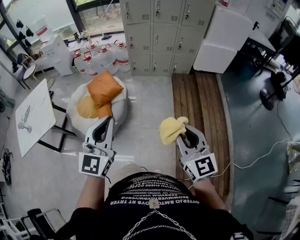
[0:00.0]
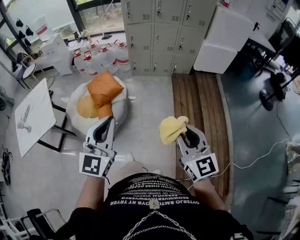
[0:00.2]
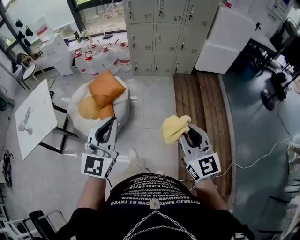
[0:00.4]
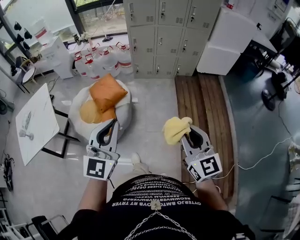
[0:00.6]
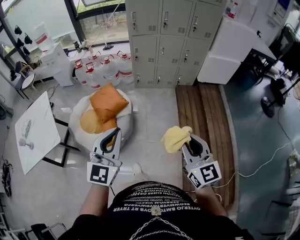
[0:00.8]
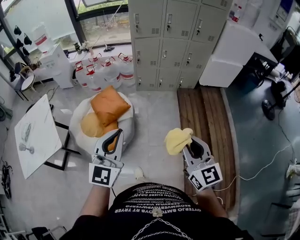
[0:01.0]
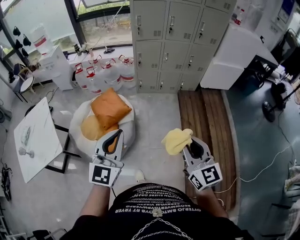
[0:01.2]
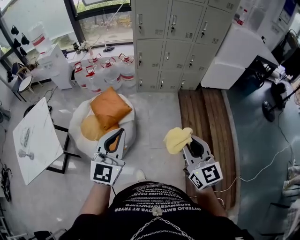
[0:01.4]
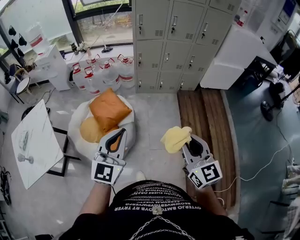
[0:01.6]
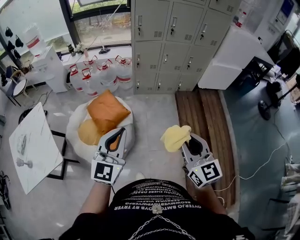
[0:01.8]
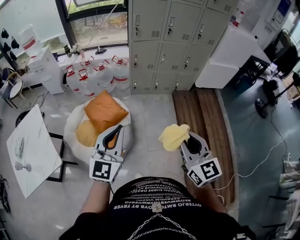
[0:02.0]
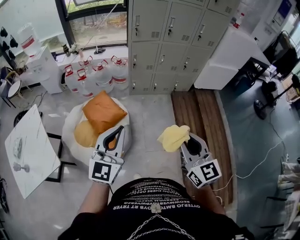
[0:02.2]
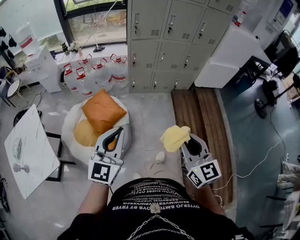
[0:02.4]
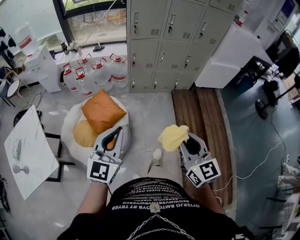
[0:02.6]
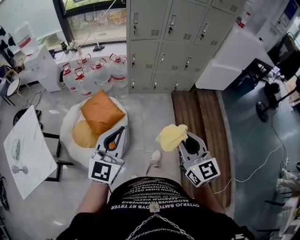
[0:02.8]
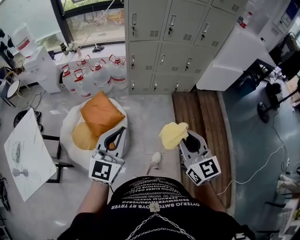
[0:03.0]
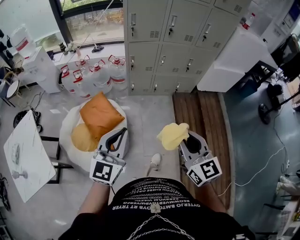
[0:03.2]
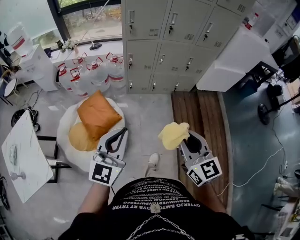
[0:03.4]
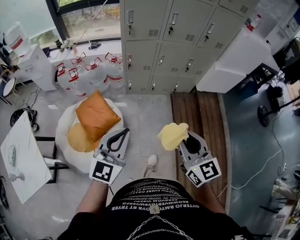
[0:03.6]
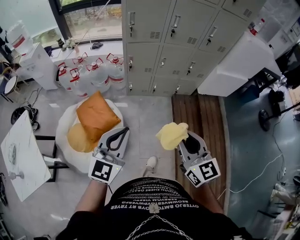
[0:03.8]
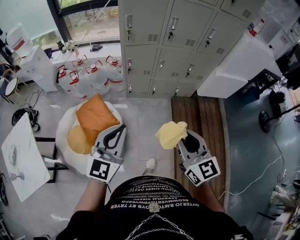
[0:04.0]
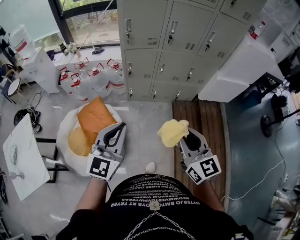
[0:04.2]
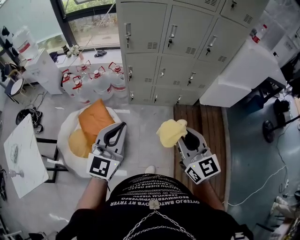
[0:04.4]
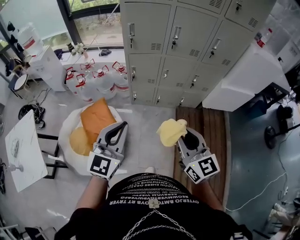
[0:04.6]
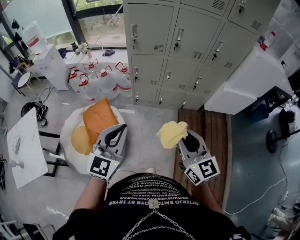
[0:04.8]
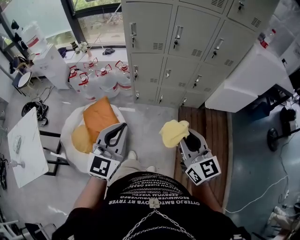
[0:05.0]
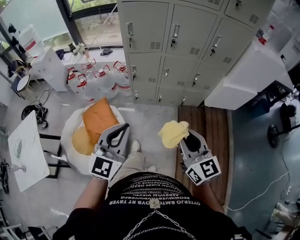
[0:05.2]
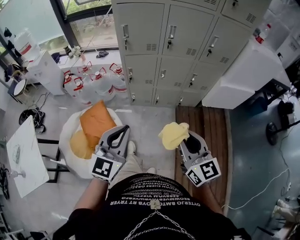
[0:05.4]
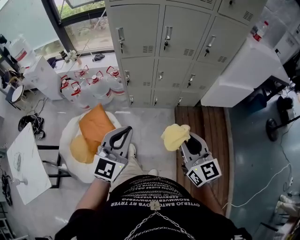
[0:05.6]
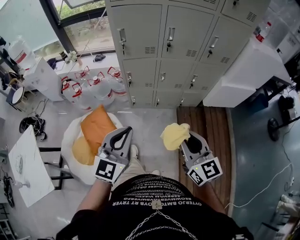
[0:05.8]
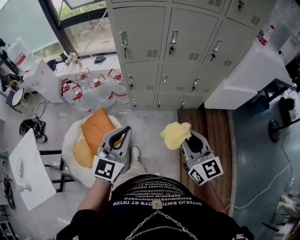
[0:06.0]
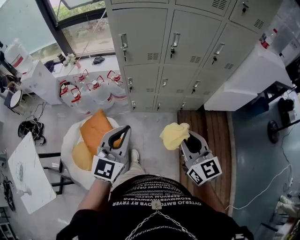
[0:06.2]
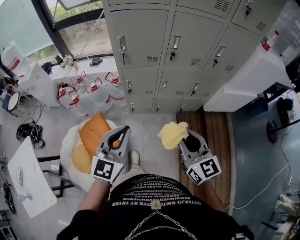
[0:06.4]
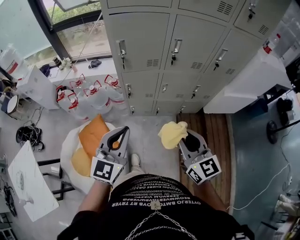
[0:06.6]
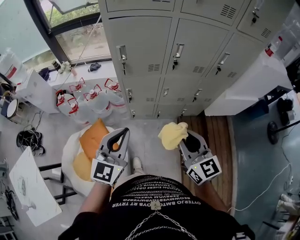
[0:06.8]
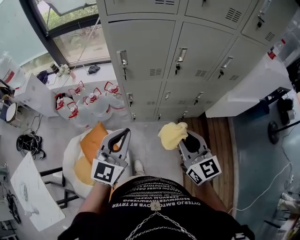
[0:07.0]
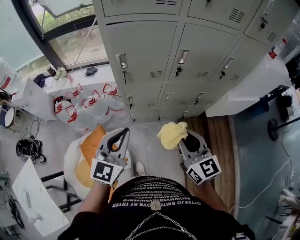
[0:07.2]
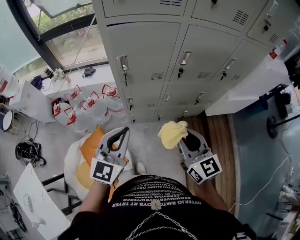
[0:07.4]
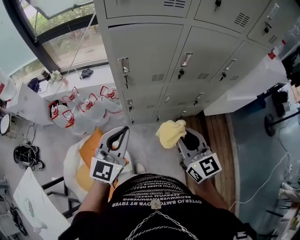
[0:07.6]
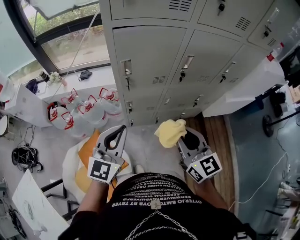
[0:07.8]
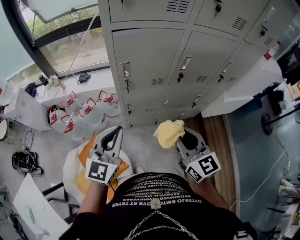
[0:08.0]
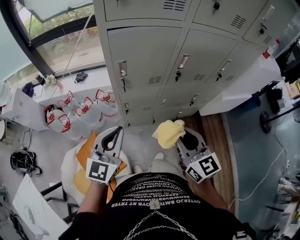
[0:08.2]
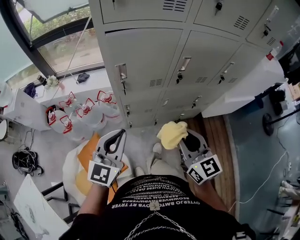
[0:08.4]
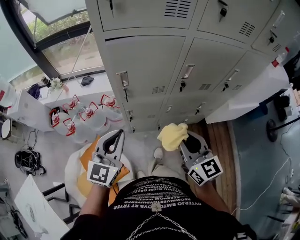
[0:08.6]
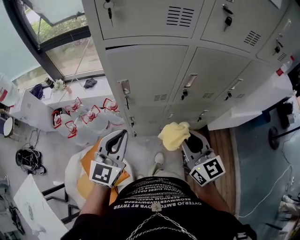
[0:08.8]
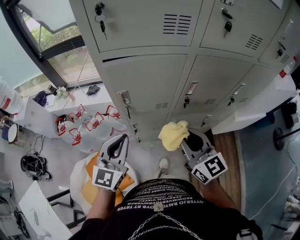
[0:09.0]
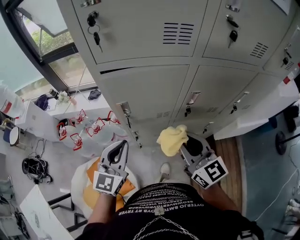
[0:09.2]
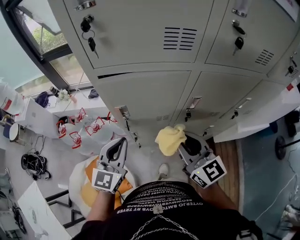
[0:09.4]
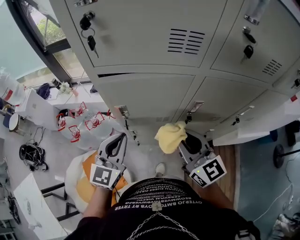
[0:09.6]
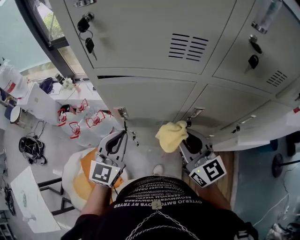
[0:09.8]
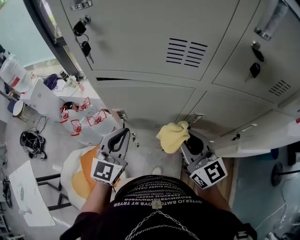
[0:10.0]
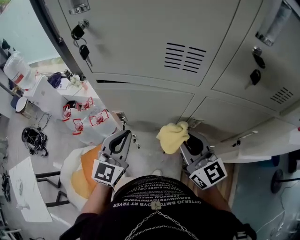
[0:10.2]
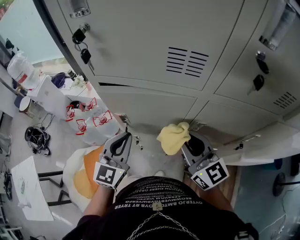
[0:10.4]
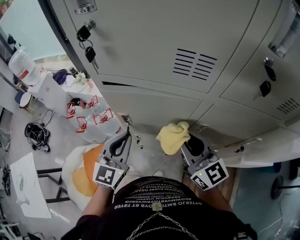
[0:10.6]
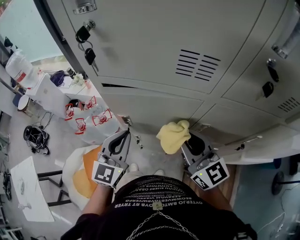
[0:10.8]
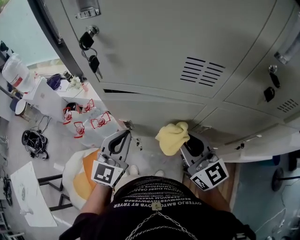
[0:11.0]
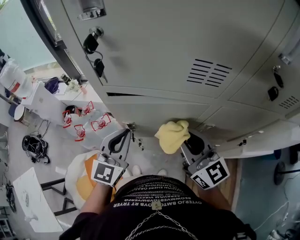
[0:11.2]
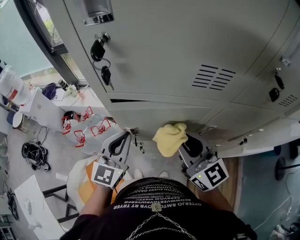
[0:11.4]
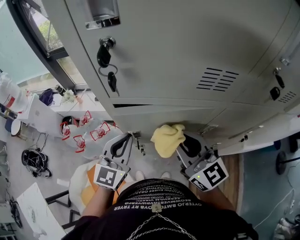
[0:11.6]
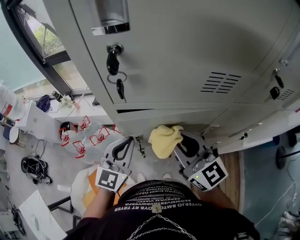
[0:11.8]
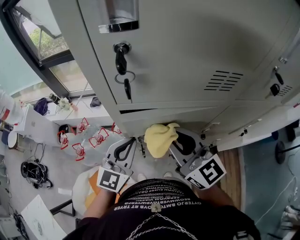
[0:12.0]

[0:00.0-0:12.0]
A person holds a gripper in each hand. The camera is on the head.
0:00.0 to 0:01.6: Both grippers travel together forward and to the left, some 25 cm.
0:01.6 to 0:03.0: The grippers both shift forward by approximately 15 cm.
0:03.0 to 0:04.4: The two grippers go roughly 20 cm forward and to the right.
0:04.4 to 0:06.0: Both grippers travel together forward, some 10 cm.
0:06.0 to 0:07.6: The right gripper goes about 25 cm forward and to the left, while the left gripper travels forward by some 25 cm.
0:07.6 to 0:09.0: The two grippers go roughly 10 cm forward.
0:09.0 to 0:10.4: The right gripper shifts roughly 15 cm forward. Meanwhile the left gripper shifts some 10 cm forward and to the right.
0:10.4 to 0:12.0: The left gripper moves forward and to the left, approximately 10 cm. The right gripper goes roughly 15 cm to the left.

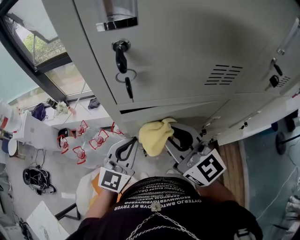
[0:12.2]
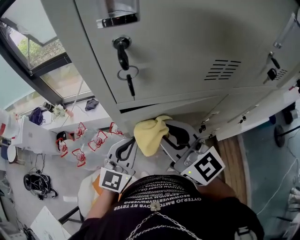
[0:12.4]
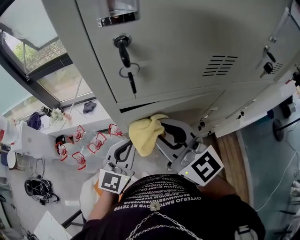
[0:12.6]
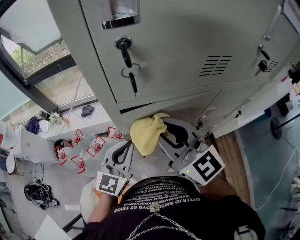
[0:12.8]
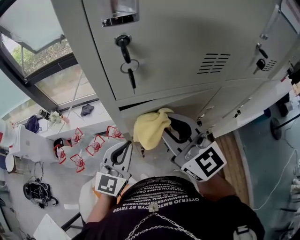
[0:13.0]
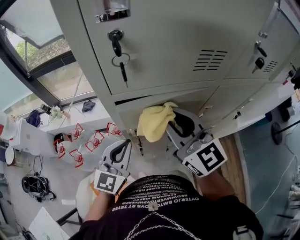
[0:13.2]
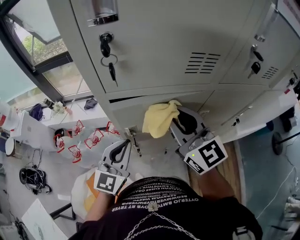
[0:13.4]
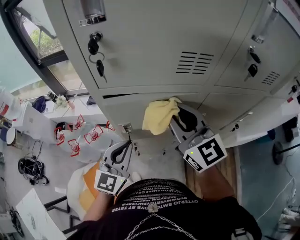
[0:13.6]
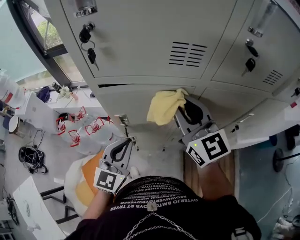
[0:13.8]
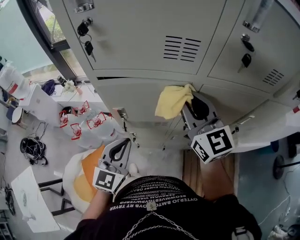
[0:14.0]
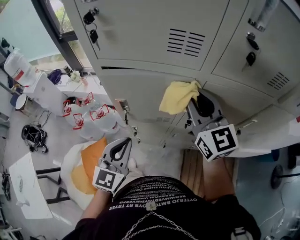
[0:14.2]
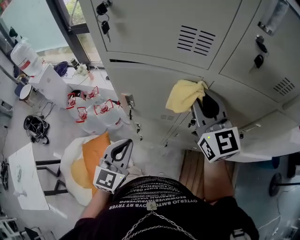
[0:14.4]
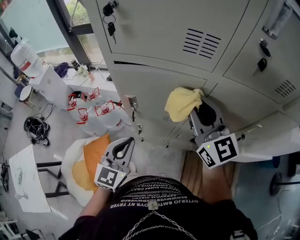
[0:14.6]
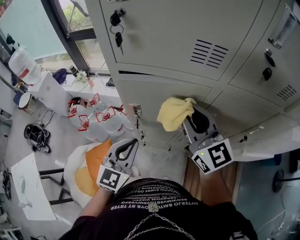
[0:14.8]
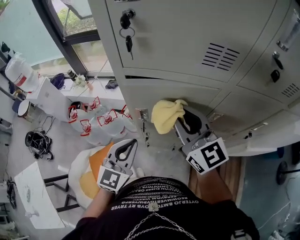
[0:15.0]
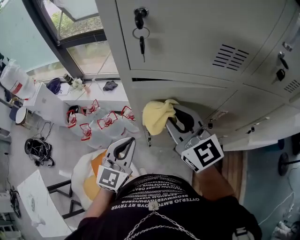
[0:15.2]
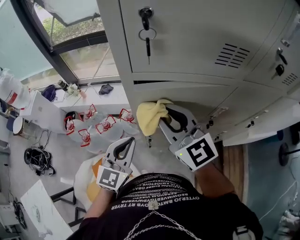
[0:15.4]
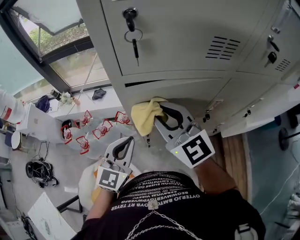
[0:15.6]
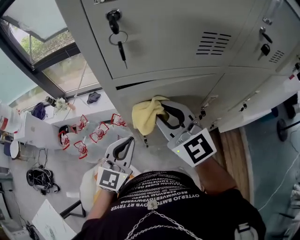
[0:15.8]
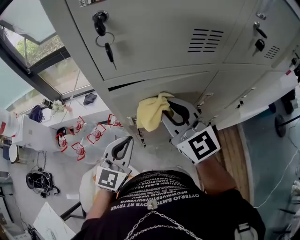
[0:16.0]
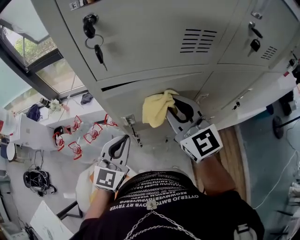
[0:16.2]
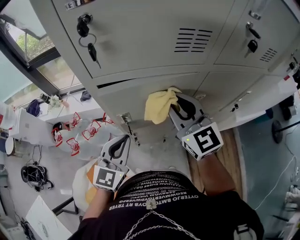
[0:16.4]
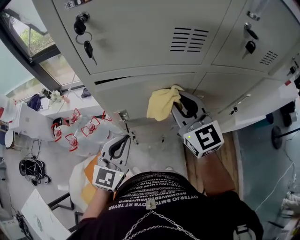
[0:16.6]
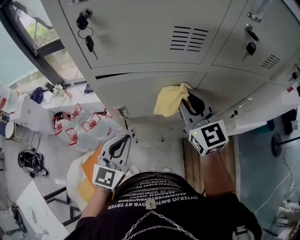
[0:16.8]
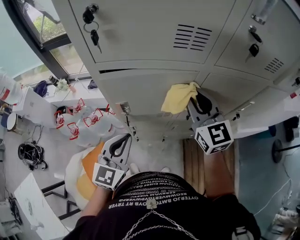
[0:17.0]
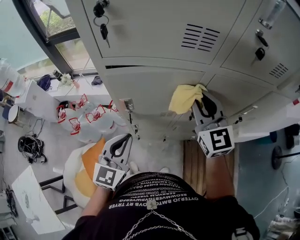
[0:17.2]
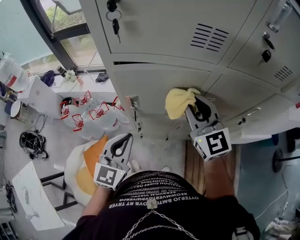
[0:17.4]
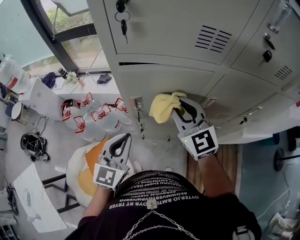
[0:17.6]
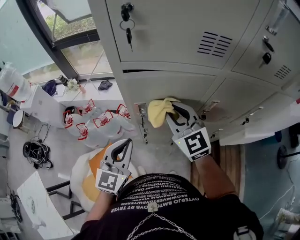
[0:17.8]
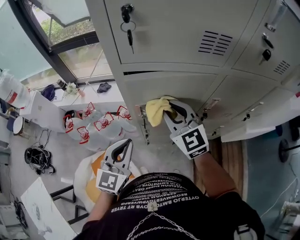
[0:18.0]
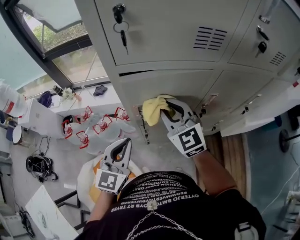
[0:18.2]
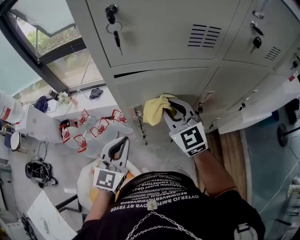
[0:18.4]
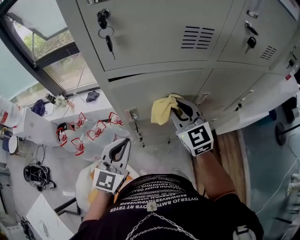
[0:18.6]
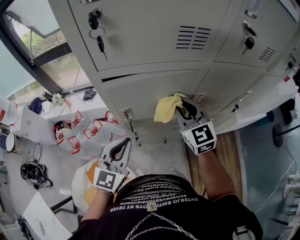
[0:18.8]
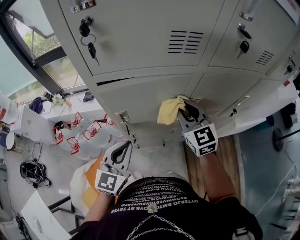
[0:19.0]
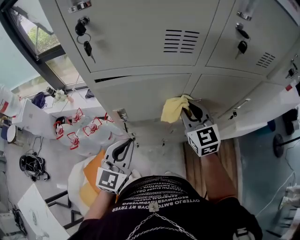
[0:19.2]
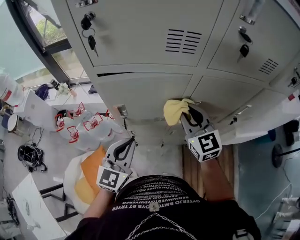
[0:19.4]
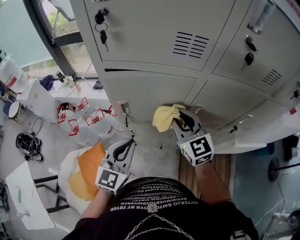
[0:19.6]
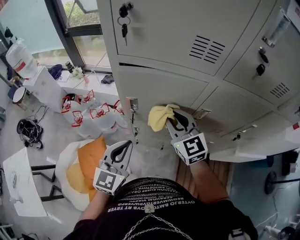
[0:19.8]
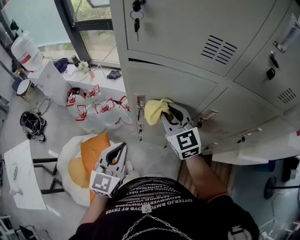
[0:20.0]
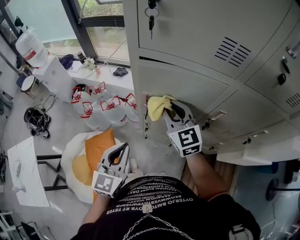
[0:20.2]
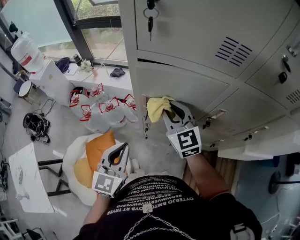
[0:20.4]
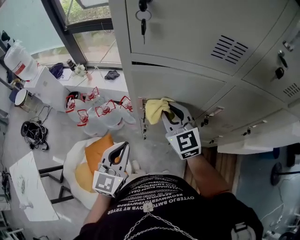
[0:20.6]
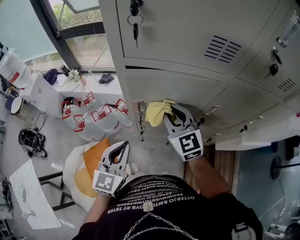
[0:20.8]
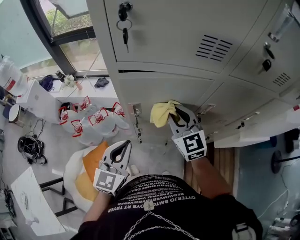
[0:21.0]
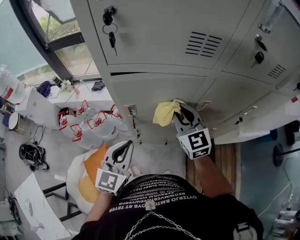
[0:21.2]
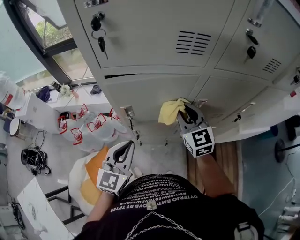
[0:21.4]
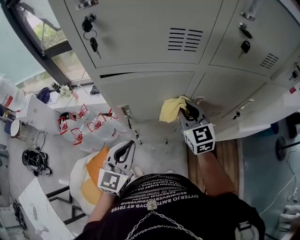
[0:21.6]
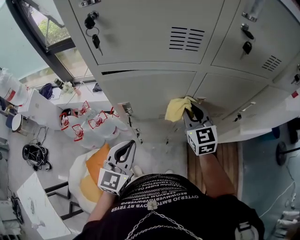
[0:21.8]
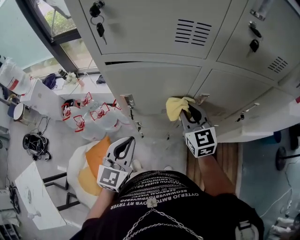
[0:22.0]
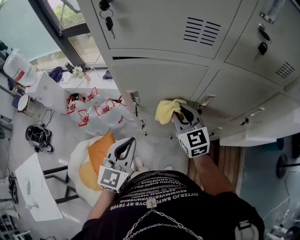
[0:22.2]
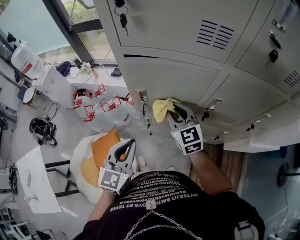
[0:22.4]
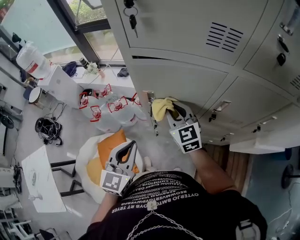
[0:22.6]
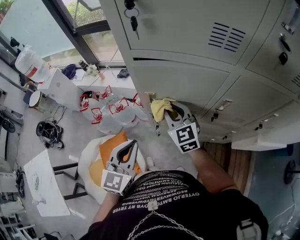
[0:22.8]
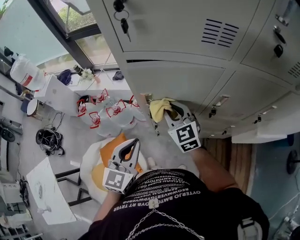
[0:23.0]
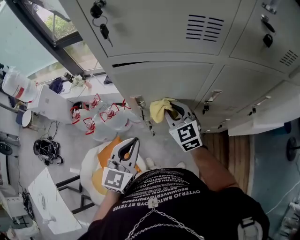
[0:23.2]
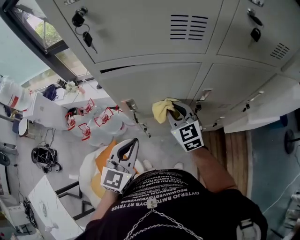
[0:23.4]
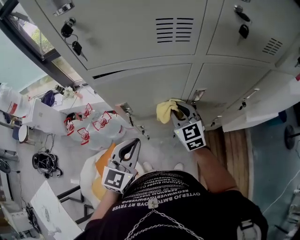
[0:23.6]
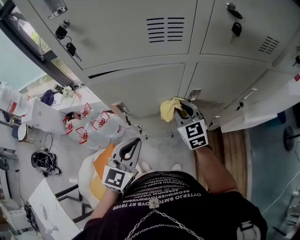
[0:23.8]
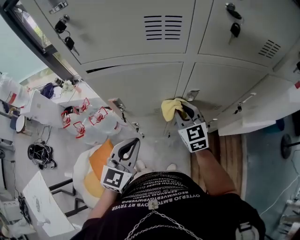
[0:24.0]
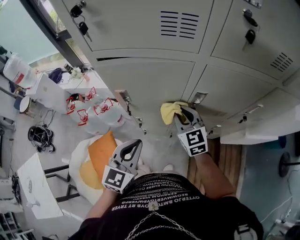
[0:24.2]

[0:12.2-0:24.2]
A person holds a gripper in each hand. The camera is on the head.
0:12.2 to 0:13.8: The right gripper heads to the right, covering approximately 10 cm. The left gripper goes some 10 cm backward and to the right.
0:13.8 to 0:15.2: The right gripper moves to the left, about 10 cm; the left gripper is displaced to the left by about 10 cm.
0:15.2 to 0:16.6: The right gripper is displaced to the right by roughly 10 cm. The left gripper is displaced to the right by roughly 5 cm.
0:16.6 to 0:18.2: The right gripper is displaced to the left and downward by about 10 cm. The left gripper shifts about 5 cm to the left.
0:18.2 to 0:19.8: The grippers both shift to the right by approximately 5 cm.
0:19.8 to 0:21.2: The right gripper reaches roughly 5 cm to the left, then returns.
0:21.2 to 0:22.6: The left gripper goes about 5 cm backward. Meanwhile the right gripper heads to the left and downward, covering some 10 cm.
0:22.6 to 0:24.2: Both grippers travel together to the right, about 10 cm.
